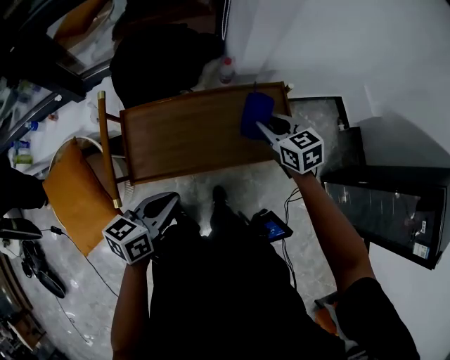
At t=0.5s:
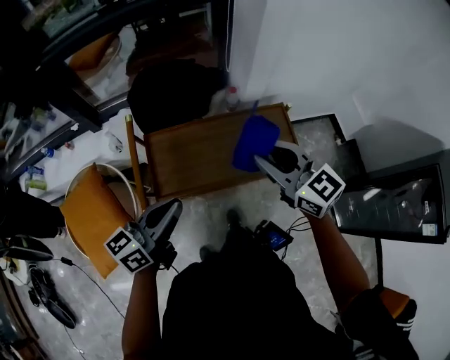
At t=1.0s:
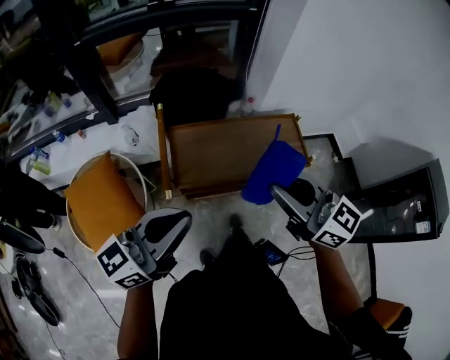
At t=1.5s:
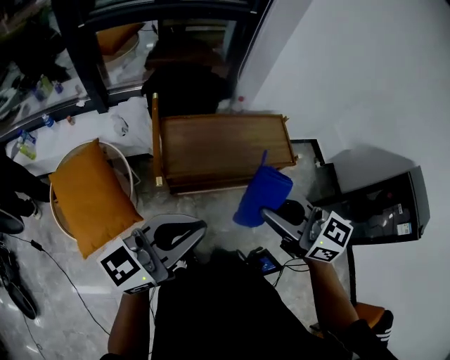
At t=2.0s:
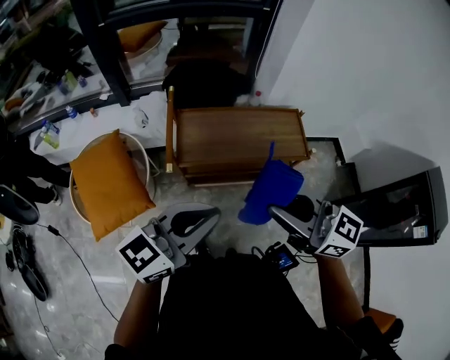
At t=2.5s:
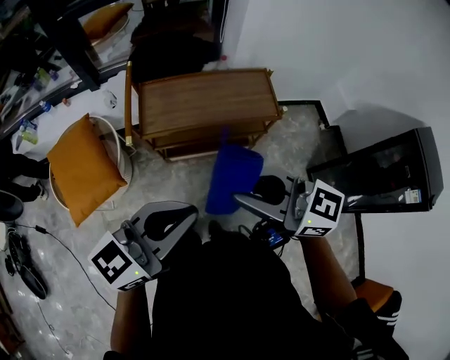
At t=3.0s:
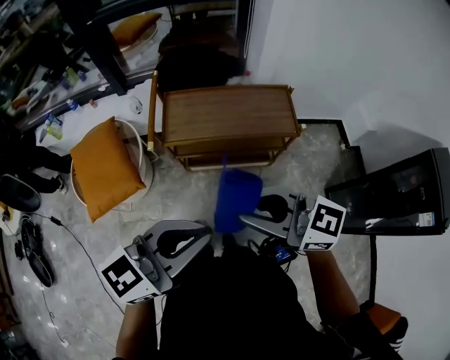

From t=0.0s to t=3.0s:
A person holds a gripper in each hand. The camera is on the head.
From t=0.0s to t=1.5s: The left gripper travels upward, backward and to the left by roughly 30 cm, and tips its fingers upward by some 30 degrees. Meanwhile the right gripper goes approximately 50 cm backward, upward and to the left, and changes its angle by approximately 30 degrees.
From t=1.5s to t=3.0s: The left gripper ends up approximately 15 cm from where it was, while the right gripper changes place by approximately 10 cm, and turns by about 20 degrees.

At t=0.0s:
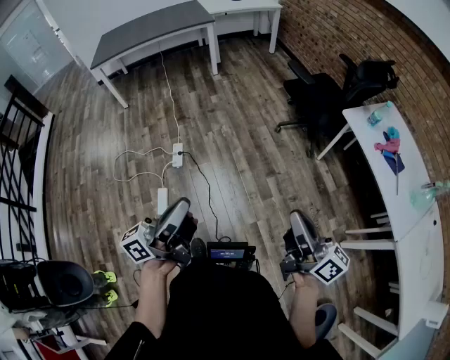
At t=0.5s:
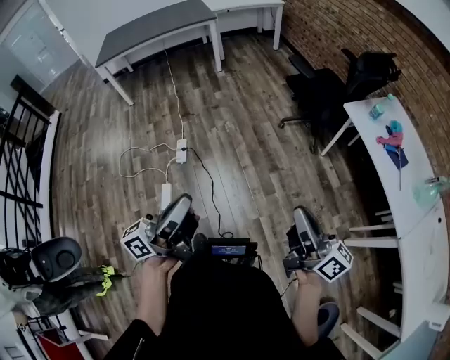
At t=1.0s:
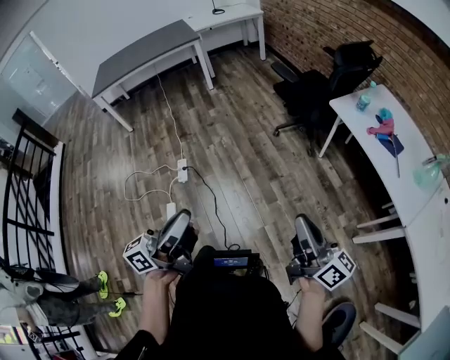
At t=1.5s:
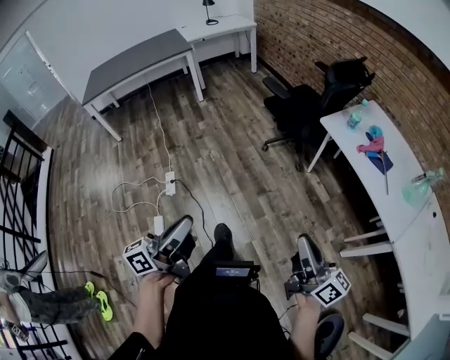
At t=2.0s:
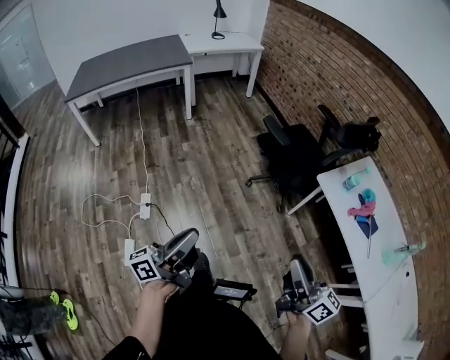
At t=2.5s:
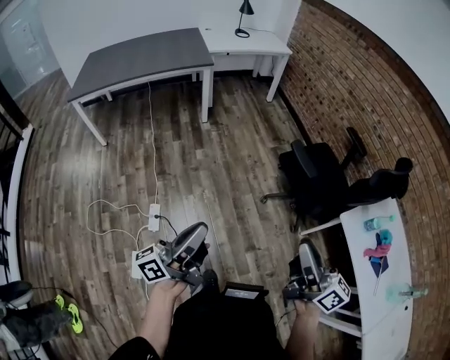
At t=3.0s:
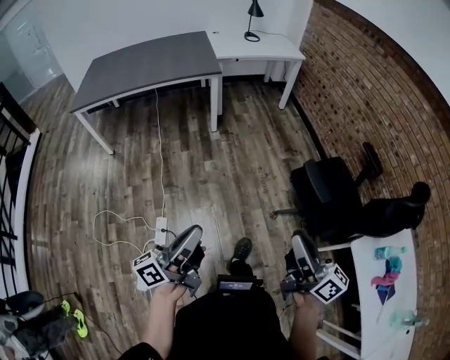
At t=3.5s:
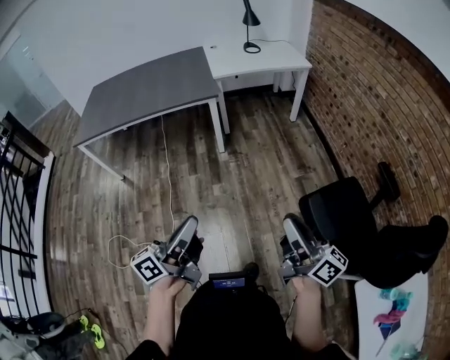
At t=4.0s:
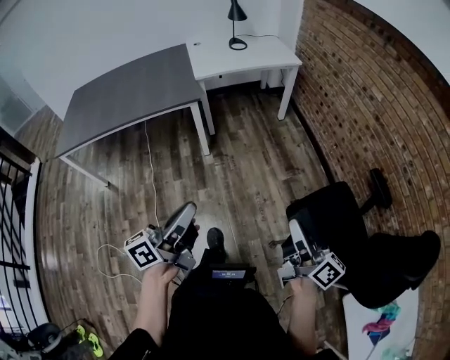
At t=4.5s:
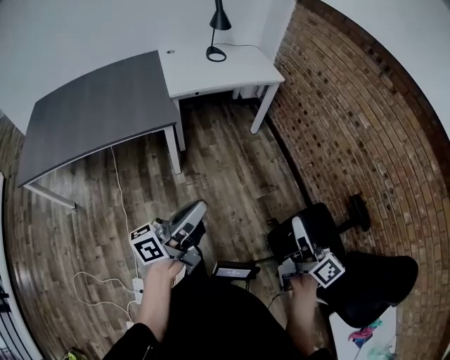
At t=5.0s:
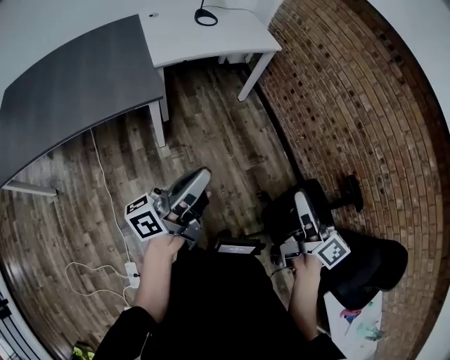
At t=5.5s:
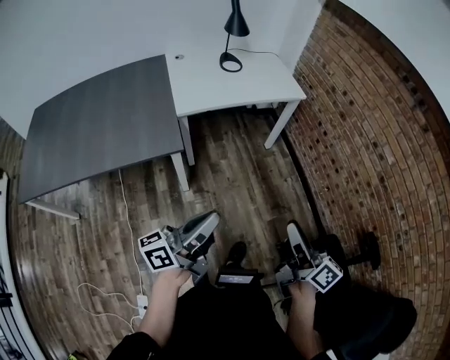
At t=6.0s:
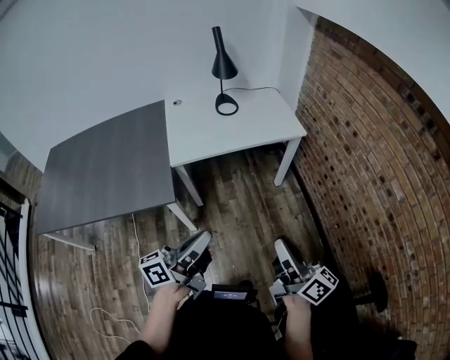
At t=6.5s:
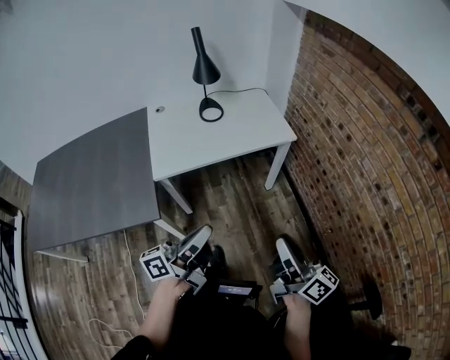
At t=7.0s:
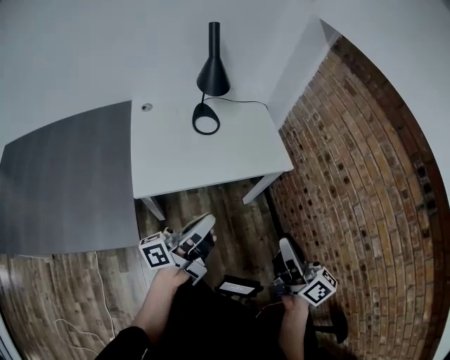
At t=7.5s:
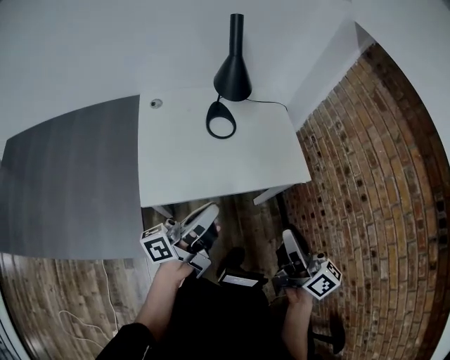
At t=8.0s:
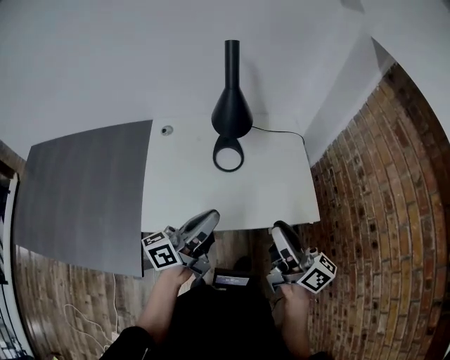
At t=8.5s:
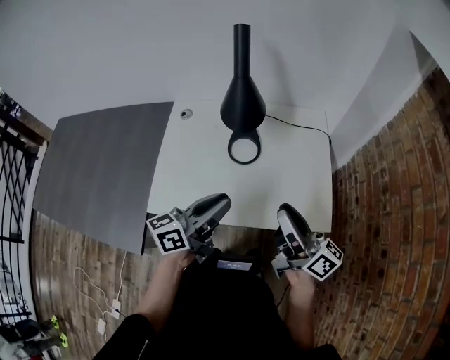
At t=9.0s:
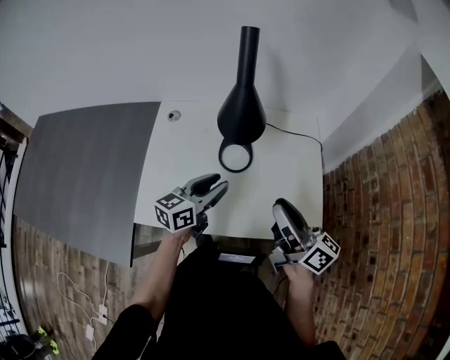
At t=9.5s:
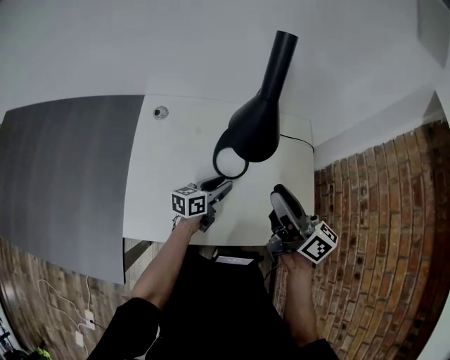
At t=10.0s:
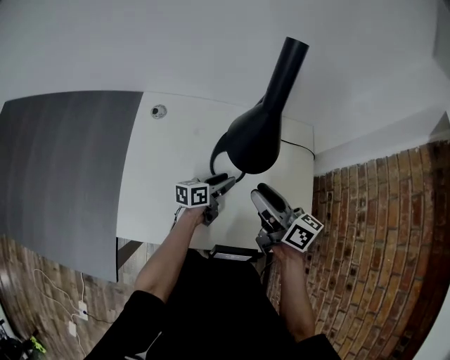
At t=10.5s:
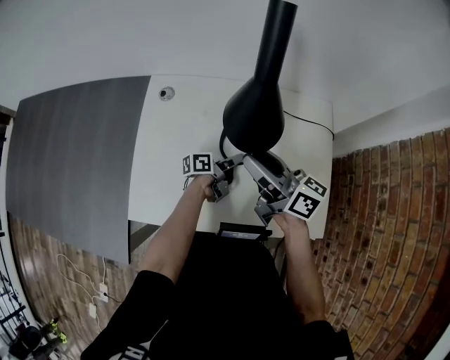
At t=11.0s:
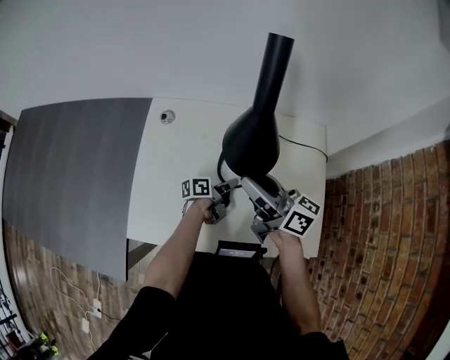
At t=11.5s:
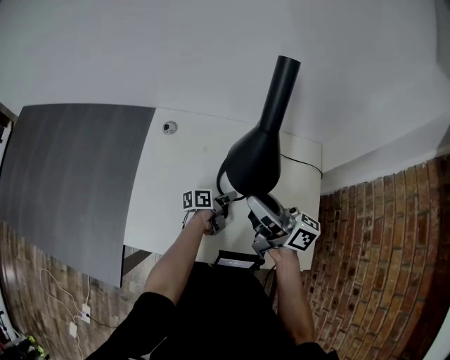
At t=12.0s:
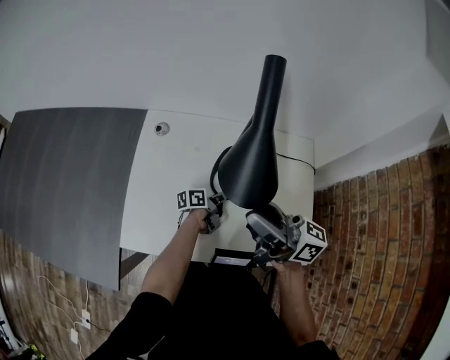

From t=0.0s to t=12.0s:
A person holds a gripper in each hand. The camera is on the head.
From t=0.0s to t=2.0s: The right gripper heads forward and to the right, covering roughly 20 cm. Meanwhile the left gripper heads forward, covering roughly 20 cm.
From t=2.0s to t=4.0s: Both grippers are carried forward, about 70 cm.
From t=4.0s to t=6.0s: Both grippers are carried forward, approximately 50 cm.
From t=6.0s to t=8.0s: The two grippers travel together, forward, roughly 50 cm.
From t=8.0s to t=10.0s: The left gripper is displaced downward and forward by about 35 cm, swivels about 20 degrees, and opens its fingers. The right gripper is displaced forward and downward by roughly 25 cm, turns by about 30 degrees, and opens.
From t=10.0s to t=12.0s: The left gripper swivels some 20 degrees, and closes. The right gripper moves upward, some 10 cm, and rotates approximately 30 degrees.

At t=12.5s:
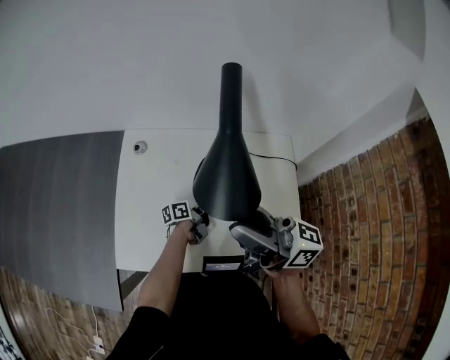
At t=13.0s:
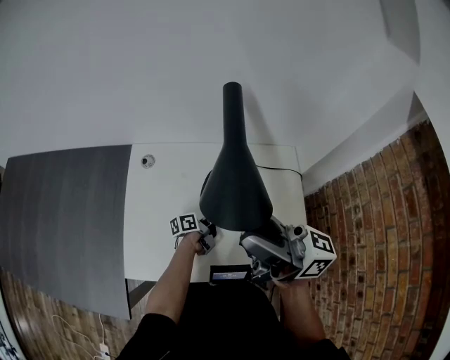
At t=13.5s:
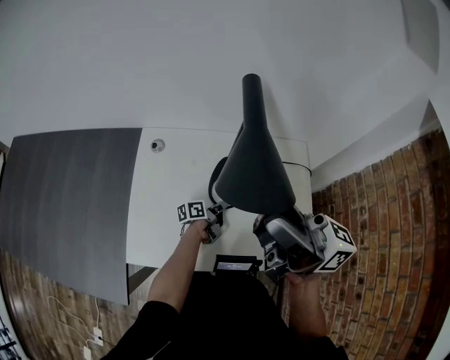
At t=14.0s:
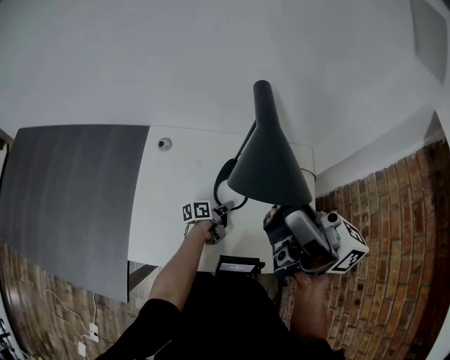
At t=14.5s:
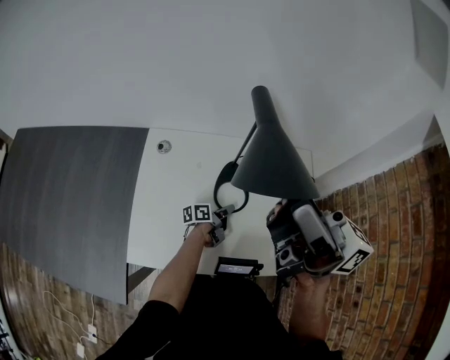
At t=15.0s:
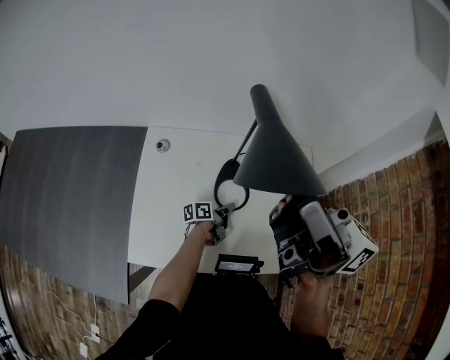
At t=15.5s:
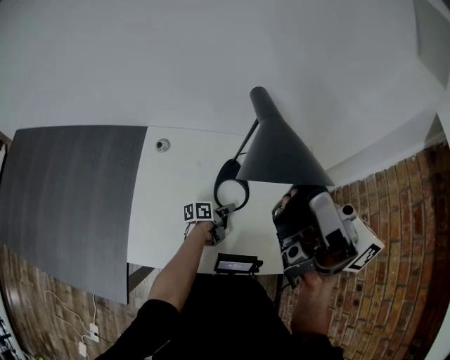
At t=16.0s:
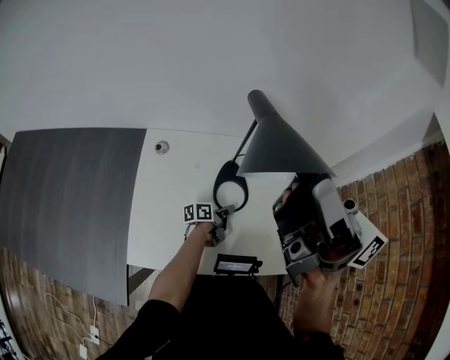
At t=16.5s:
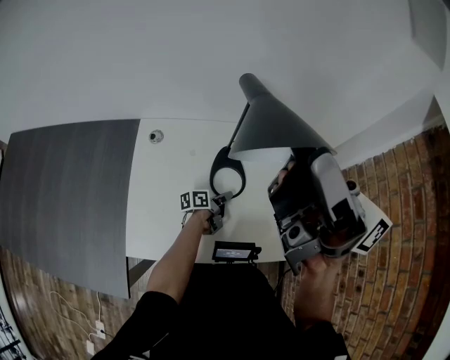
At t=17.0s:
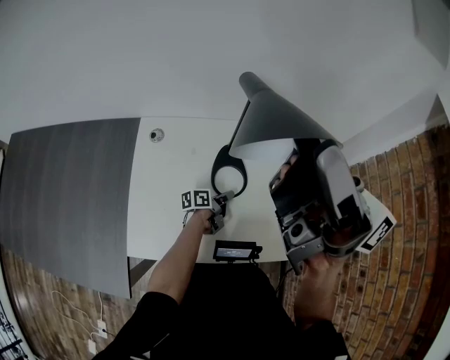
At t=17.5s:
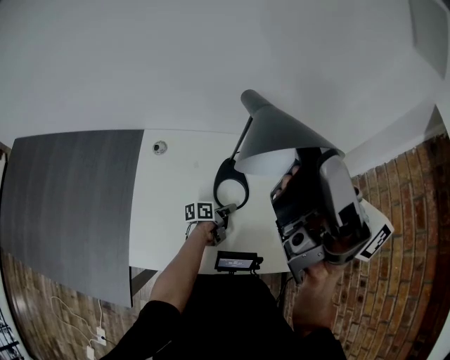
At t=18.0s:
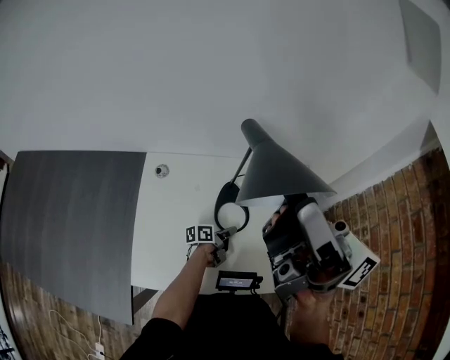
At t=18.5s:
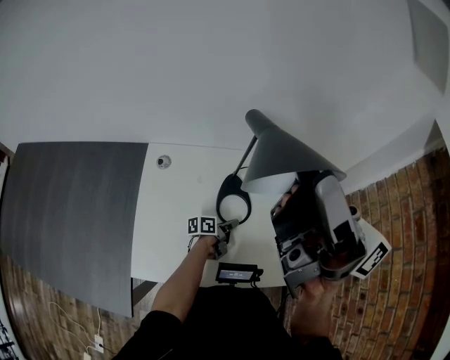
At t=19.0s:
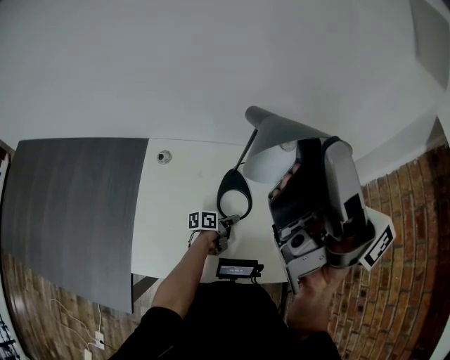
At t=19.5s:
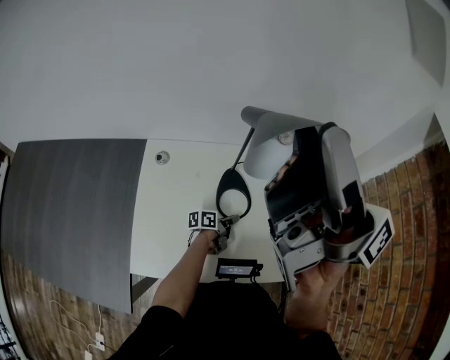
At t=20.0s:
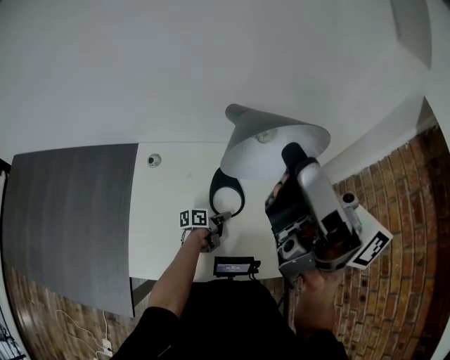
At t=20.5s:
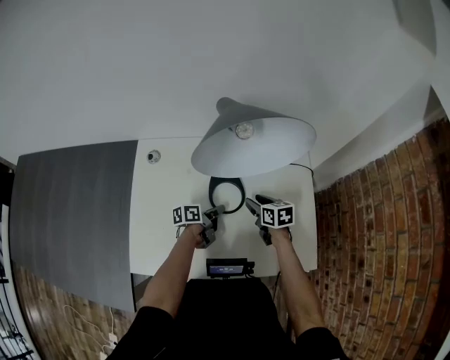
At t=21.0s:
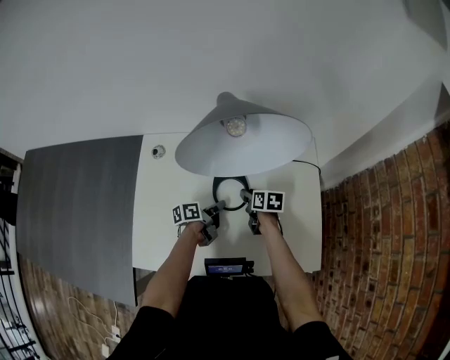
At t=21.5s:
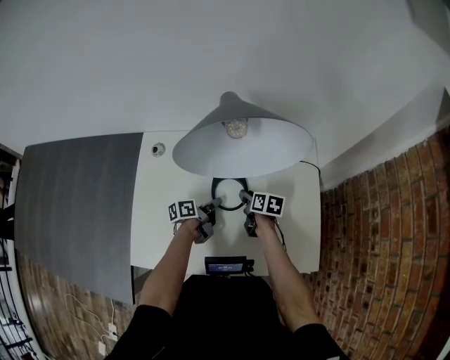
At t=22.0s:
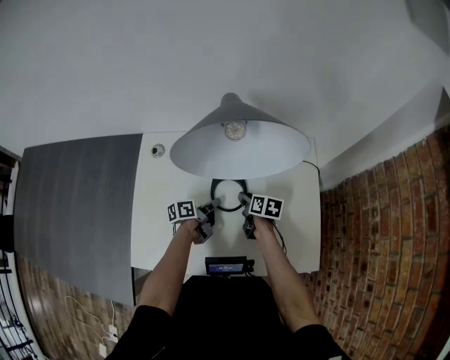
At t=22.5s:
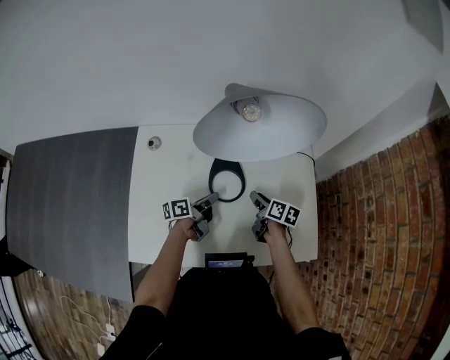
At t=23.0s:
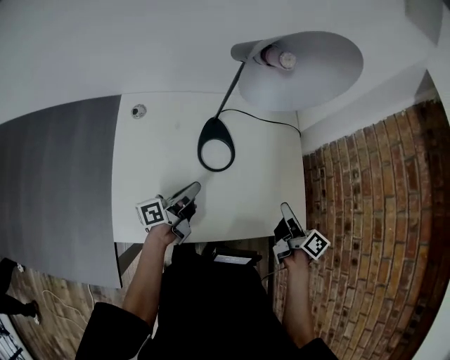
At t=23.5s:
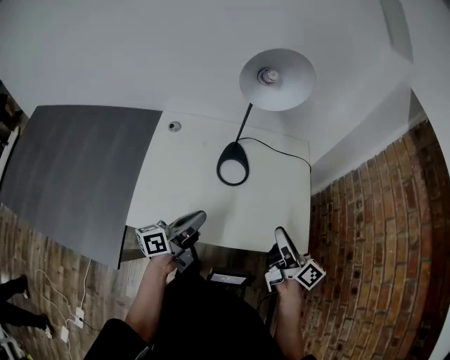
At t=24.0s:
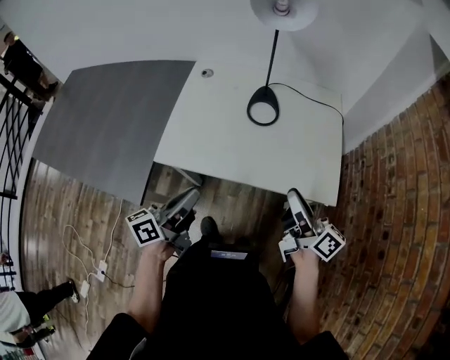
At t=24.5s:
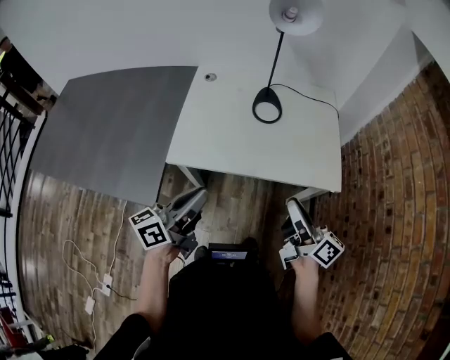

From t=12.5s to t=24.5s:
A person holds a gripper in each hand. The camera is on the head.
From t=12.5s to t=14.5s: The right gripper moves upward, about 15 cm.
From t=14.5s to t=16.5s: The right gripper ends up about 5 cm from where it was.
From t=16.5s to t=18.5s: The grippers make only small movements.
From t=18.5s to t=20.5s: The right gripper is displaced downward by roughly 60 cm, and angles its fingers downward, by approximately 80 degrees.
From t=20.5s to t=22.5s: The right gripper turns by about 30 degrees.
From t=22.5s to t=24.5s: Both grippers move backward and upward, about 50 cm. The right gripper angles its fingers upward, by some 40 degrees, while the left gripper swivels some 40 degrees.
